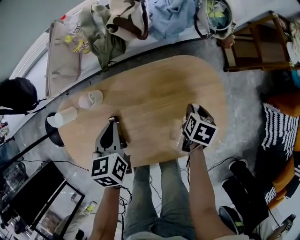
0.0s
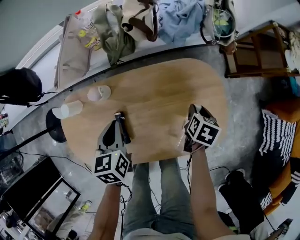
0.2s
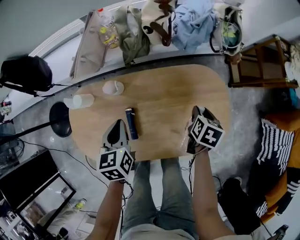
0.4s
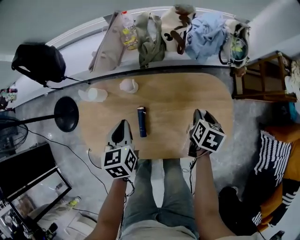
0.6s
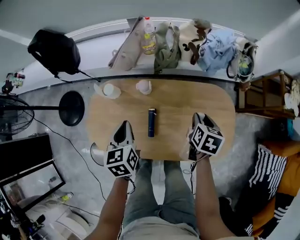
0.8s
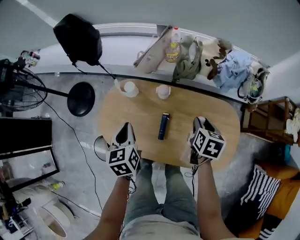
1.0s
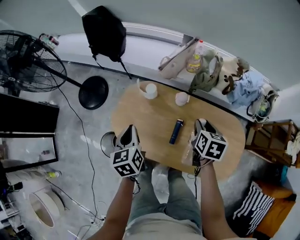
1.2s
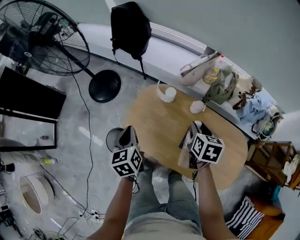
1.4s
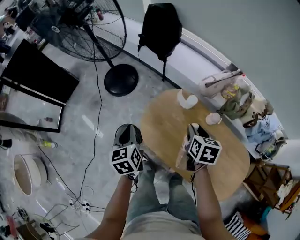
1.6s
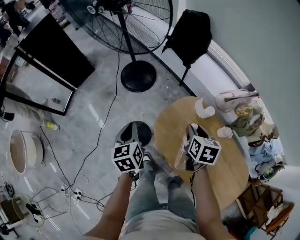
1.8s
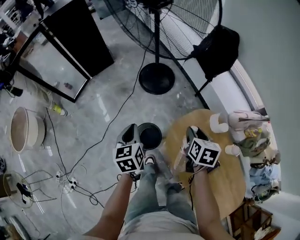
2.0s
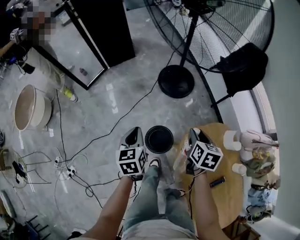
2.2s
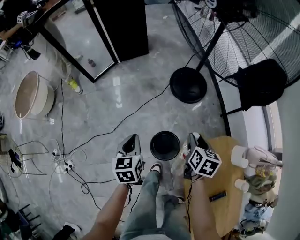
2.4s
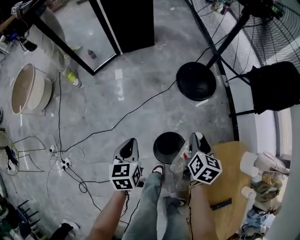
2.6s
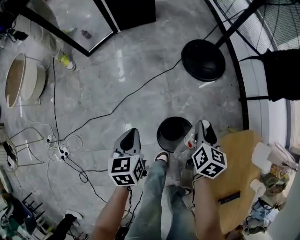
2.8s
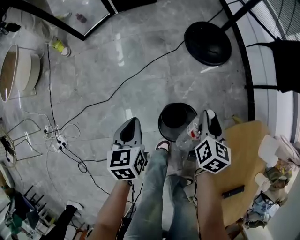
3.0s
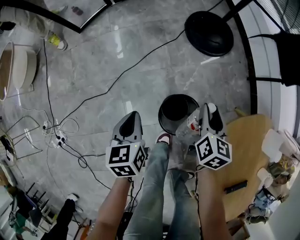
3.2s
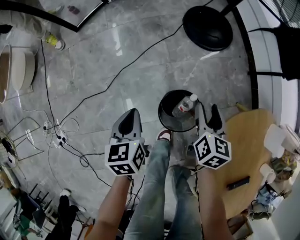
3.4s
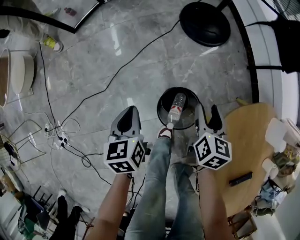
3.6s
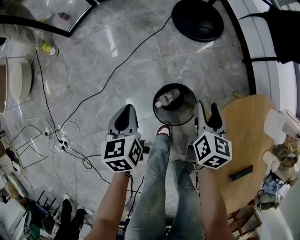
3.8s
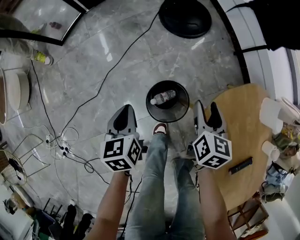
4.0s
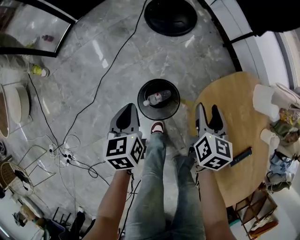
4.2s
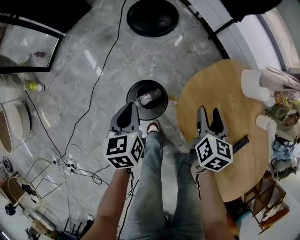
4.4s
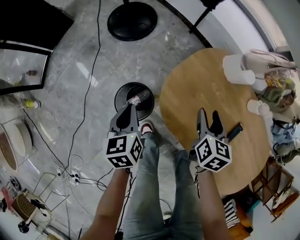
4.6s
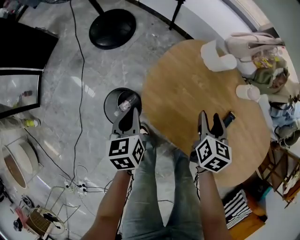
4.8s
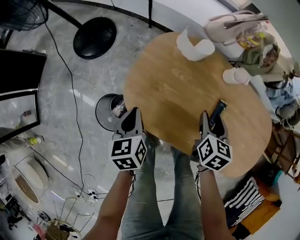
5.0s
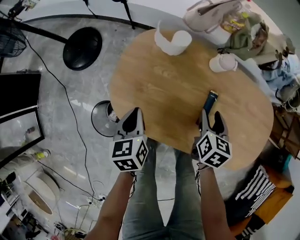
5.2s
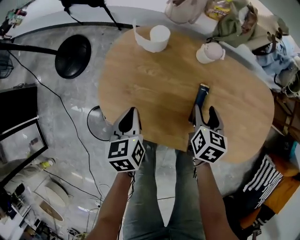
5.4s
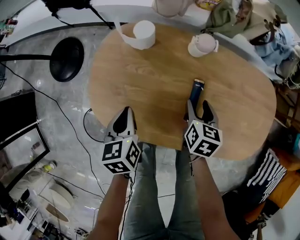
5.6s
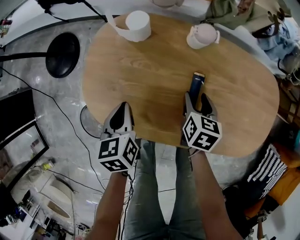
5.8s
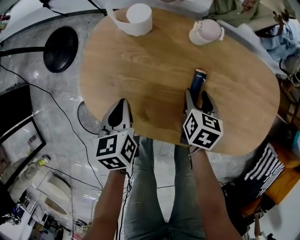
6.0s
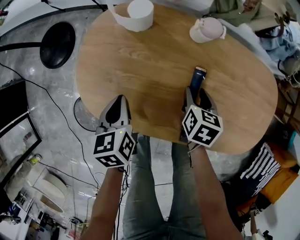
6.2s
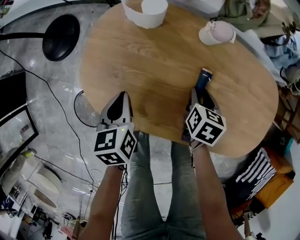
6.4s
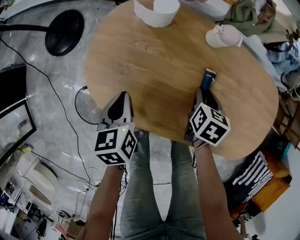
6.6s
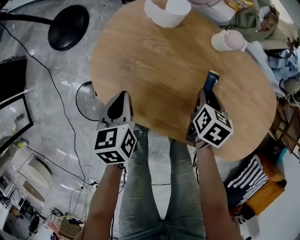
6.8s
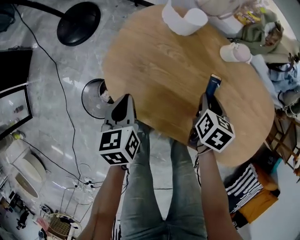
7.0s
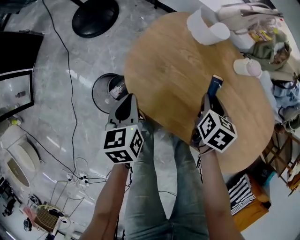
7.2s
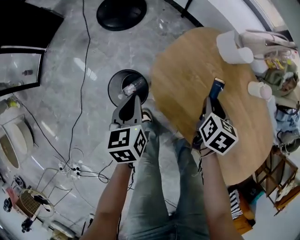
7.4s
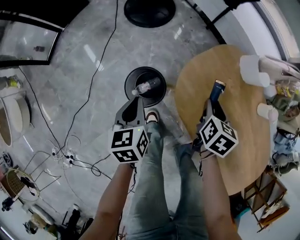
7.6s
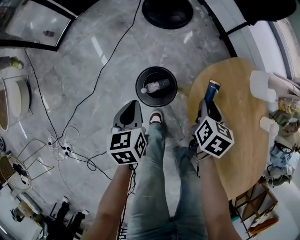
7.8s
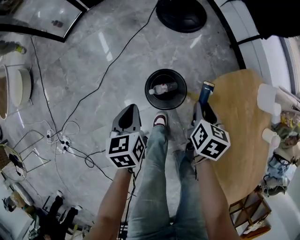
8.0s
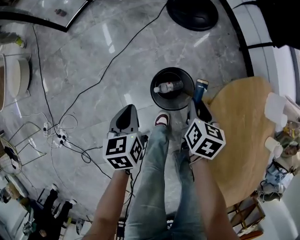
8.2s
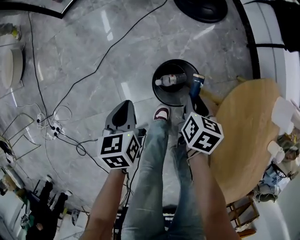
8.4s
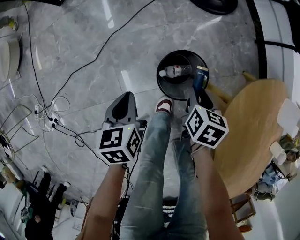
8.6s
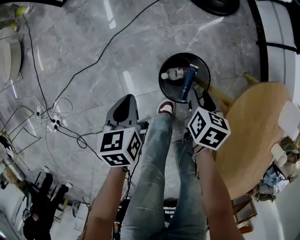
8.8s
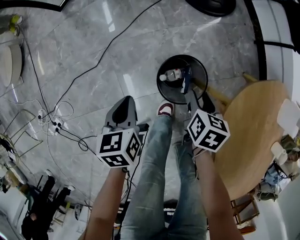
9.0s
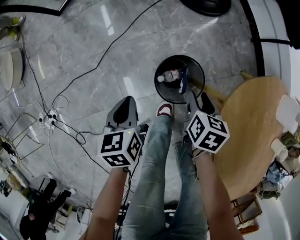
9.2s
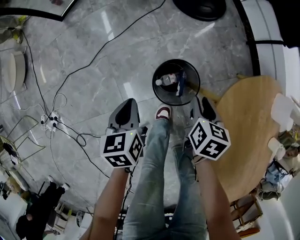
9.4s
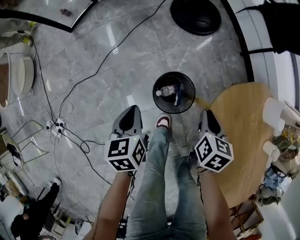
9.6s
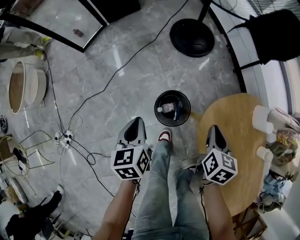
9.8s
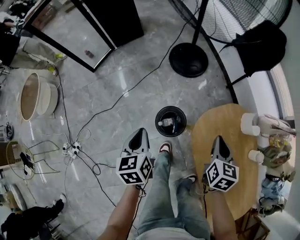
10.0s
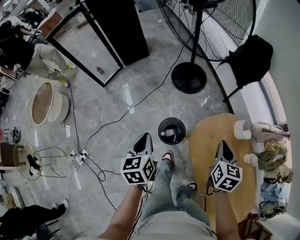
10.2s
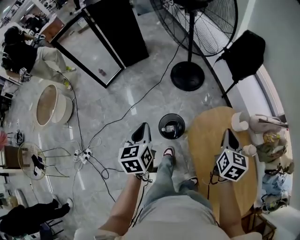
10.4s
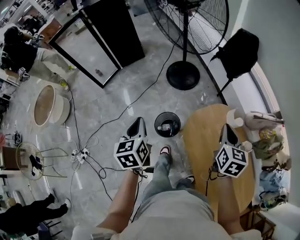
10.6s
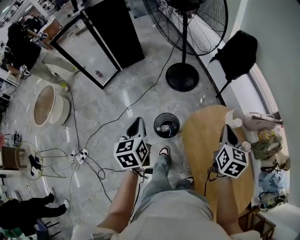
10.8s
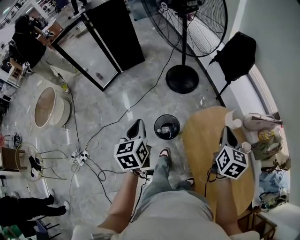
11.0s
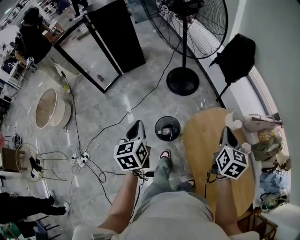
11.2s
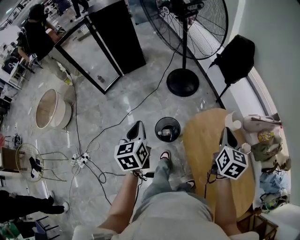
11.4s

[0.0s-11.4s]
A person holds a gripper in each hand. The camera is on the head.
0.0s to 1.4s: The two grippers travel together, about 40 cm. The right gripper changes its angle by about 50 degrees; the left gripper changes its angle by about 50 degrees.
1.4s to 2.8s: The two grippers travel together, roughly 50 cm. The right gripper turns by approximately 40 degrees. The left gripper turns by approximately 40 degrees.
2.8s to 4.2s: The right gripper heads backward and to the right, covering approximately 15 cm. The left gripper heads to the right, covering roughly 10 cm.
4.2s to 5.6s: The pair of grippers is taken approximately 40 cm. The left gripper turns by about 50 degrees, while the right gripper changes its angle by approximately 50 degrees.
5.6s to 7.2s: The left gripper is displaced to the left and backward by some 15 cm. The right gripper is displaced to the left by roughly 10 cm, and closes.
7.2s to 8.6s: The left gripper ends up approximately 40 cm from where it was, and changes its angle by some 40 degrees; the right gripper changes place by approximately 40 cm, and changes its angle by some 50 degrees.
8.6s to 10.0s: The left gripper travels upward by roughly 30 cm; the right gripper moves upward and to the right, some 40 cm, turns by about 20 degrees, and closes its fingers.
10.0s to 11.4s: The left gripper travels upward by approximately 15 cm. Meanwhile the right gripper heads upward, to the right and backward, covering roughly 20 cm.

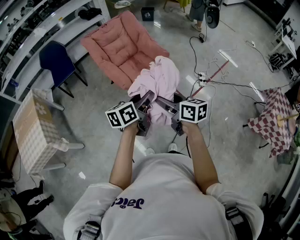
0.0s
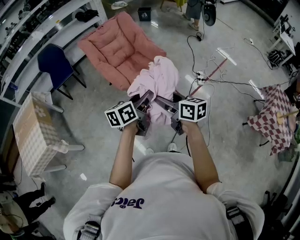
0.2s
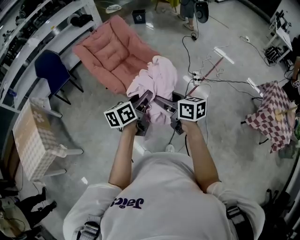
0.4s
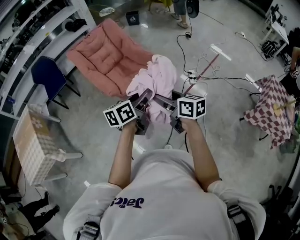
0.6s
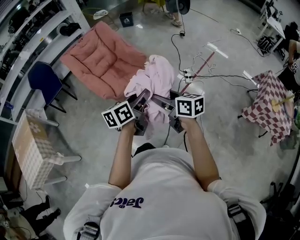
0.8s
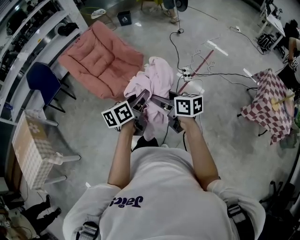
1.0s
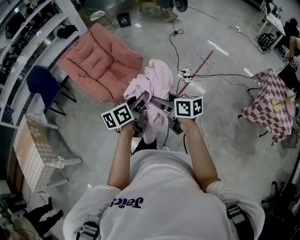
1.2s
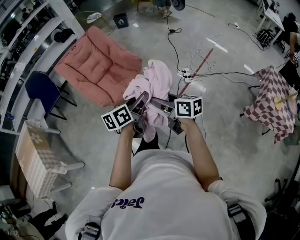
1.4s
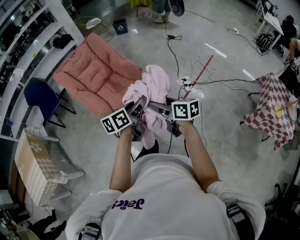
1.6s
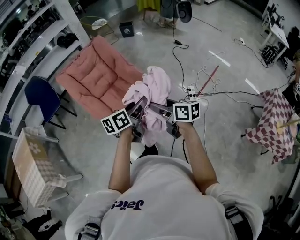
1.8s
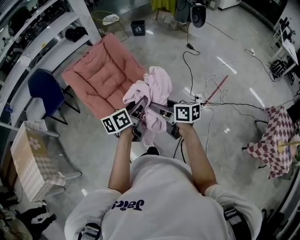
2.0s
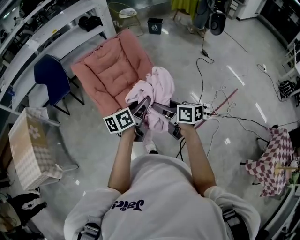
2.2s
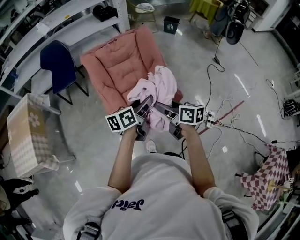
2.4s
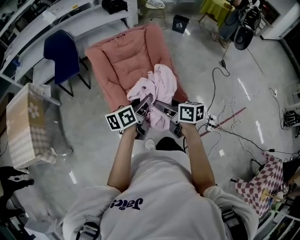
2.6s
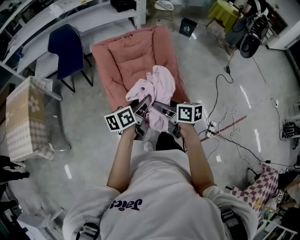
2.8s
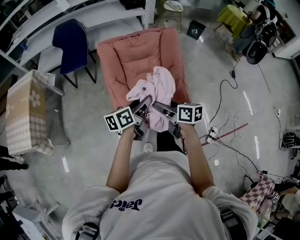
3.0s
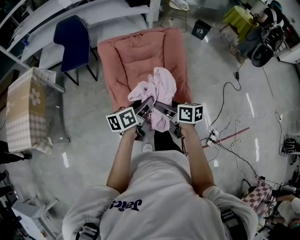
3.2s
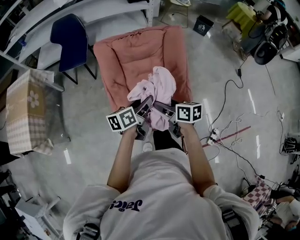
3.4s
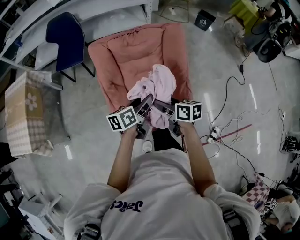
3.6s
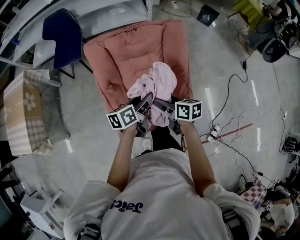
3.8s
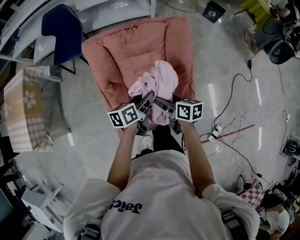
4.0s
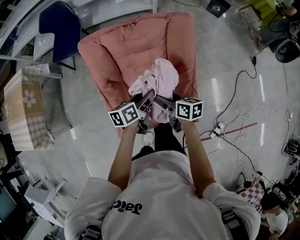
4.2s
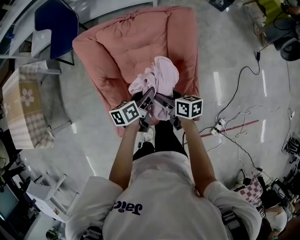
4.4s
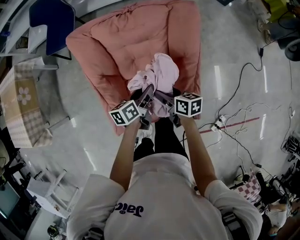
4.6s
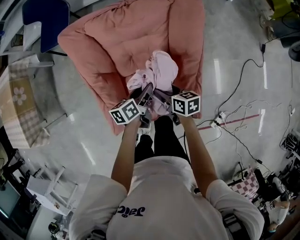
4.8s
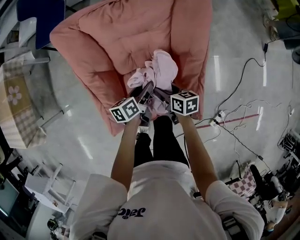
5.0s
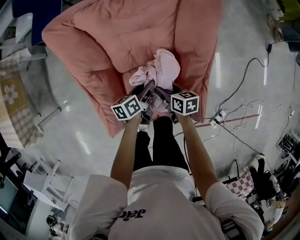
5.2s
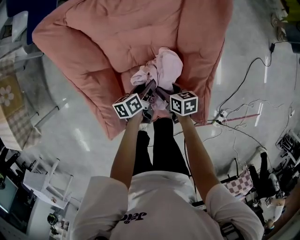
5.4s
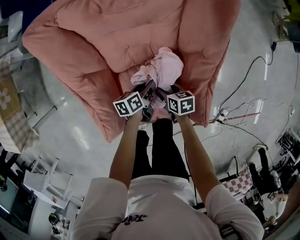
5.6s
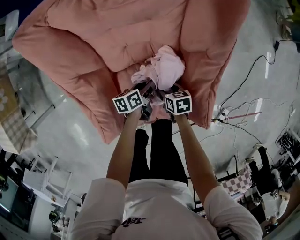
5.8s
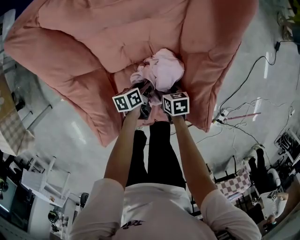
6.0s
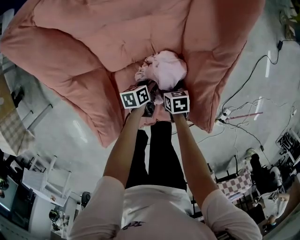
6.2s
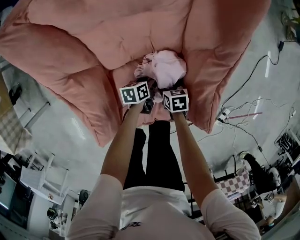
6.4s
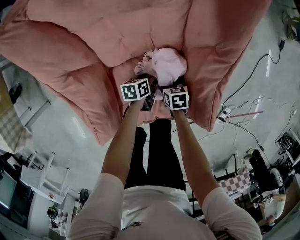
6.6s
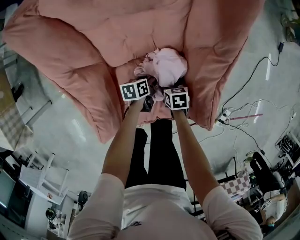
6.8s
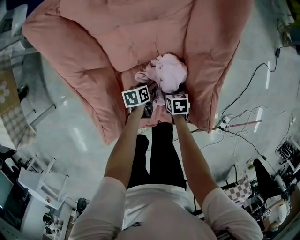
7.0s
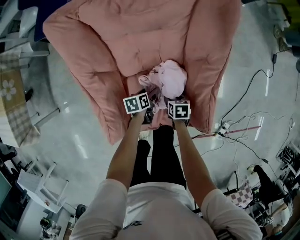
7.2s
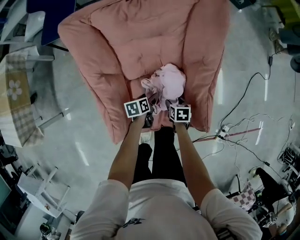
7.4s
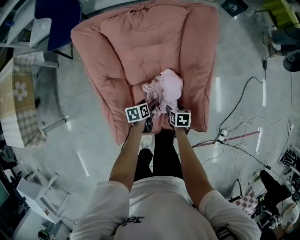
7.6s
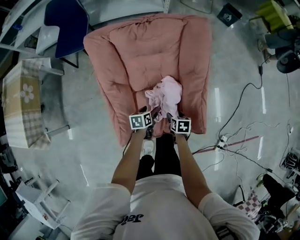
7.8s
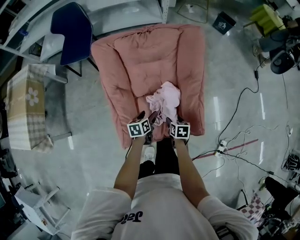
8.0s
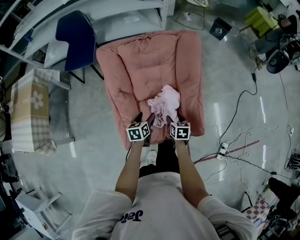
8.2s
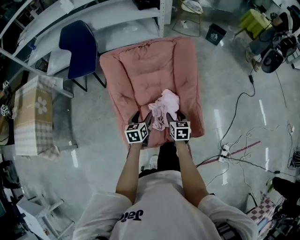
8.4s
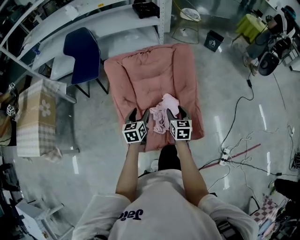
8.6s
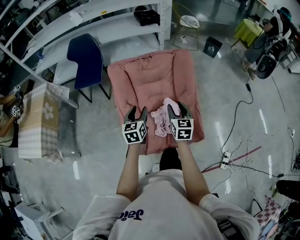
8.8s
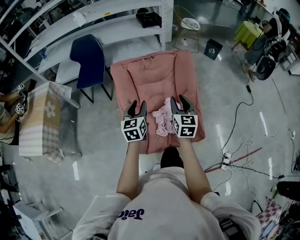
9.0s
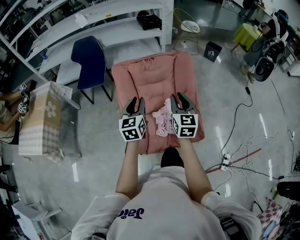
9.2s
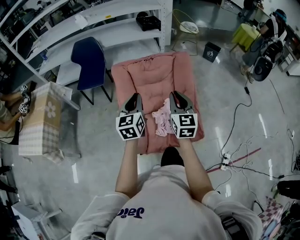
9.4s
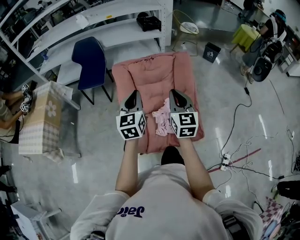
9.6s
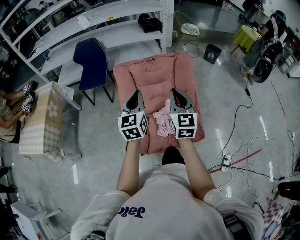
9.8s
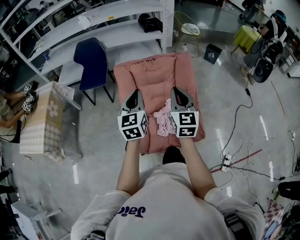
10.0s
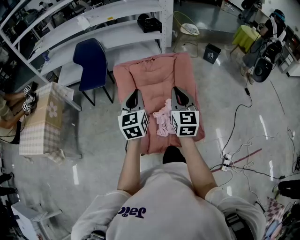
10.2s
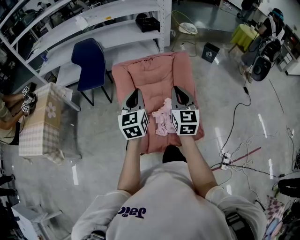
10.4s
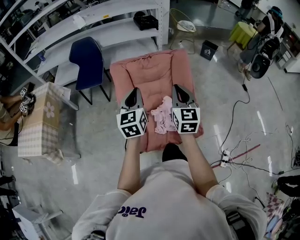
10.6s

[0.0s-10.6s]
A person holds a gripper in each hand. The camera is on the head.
0.0s to 1.6s: Both grippers move to the right and forward, roughly 20 cm.
1.6s to 3.0s: Both grippers are carried about 40 cm. The right gripper swivels roughly 30 degrees. The left gripper changes its angle by approximately 30 degrees.
3.0s to 4.6s: Both grippers move forward, downward and to the right, approximately 30 cm. The left gripper changes its angle by approximately 20 degrees.
4.6s to 6.0s: Both grippers travel together downward, roughly 30 cm. The right gripper rotates some 30 degrees.
6.0s to 7.6s: Both grippers move upward and backward, approximately 10 cm.
7.6s to 9.0s: Both grippers travel together upward, roughly 40 cm. The right gripper points its fingers about 50 degrees further upward, and closes. The left gripper points its fingers roughly 30 degrees further upward, and closes up.
9.0s to 10.6s: The two grippers go roughly 10 cm upward. The left gripper closes up; the right gripper closes up.

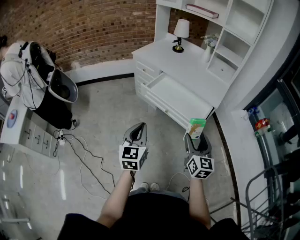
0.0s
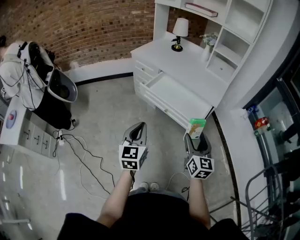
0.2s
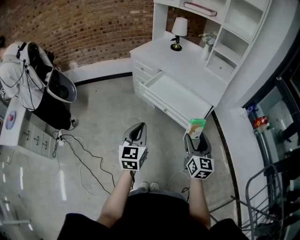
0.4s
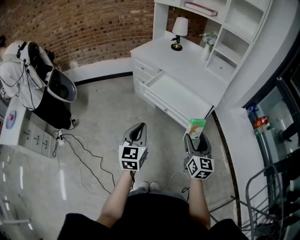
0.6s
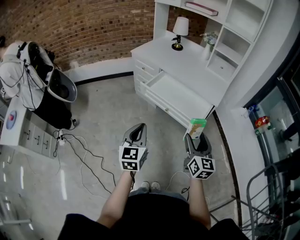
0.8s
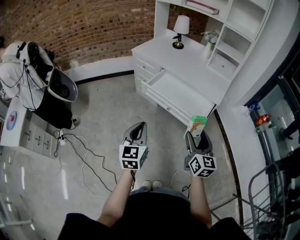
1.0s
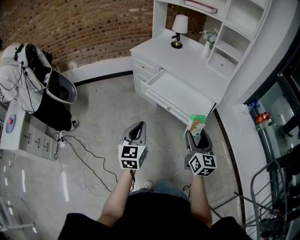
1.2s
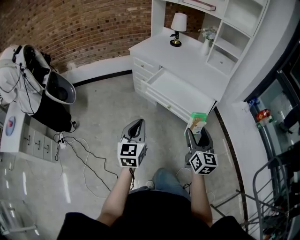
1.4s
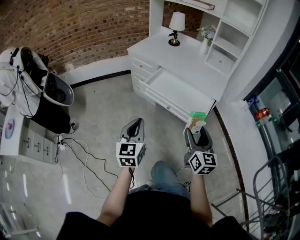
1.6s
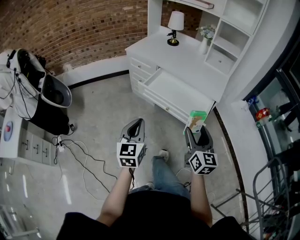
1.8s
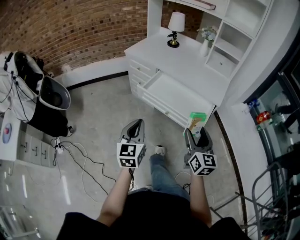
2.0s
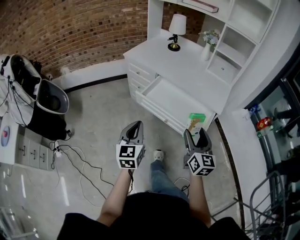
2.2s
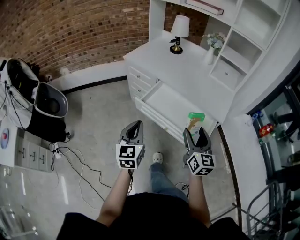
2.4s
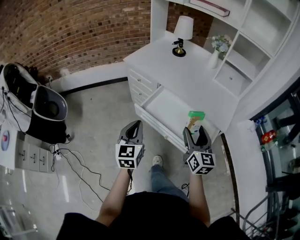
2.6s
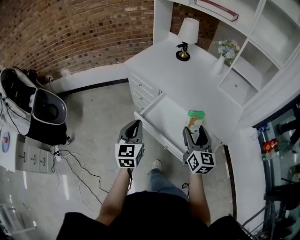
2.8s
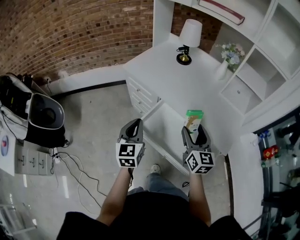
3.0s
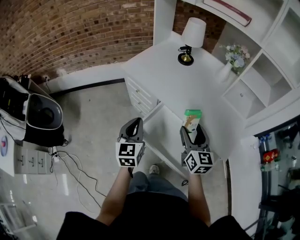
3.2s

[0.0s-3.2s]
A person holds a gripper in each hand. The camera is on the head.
0.0s to 1.6s: The left gripper ends up about 5 cm from where it was.
1.6s to 3.2s: The two grippers travel together, forward, approximately 50 cm.
